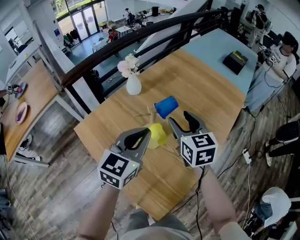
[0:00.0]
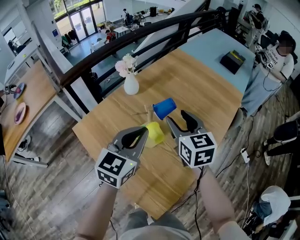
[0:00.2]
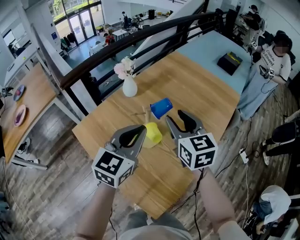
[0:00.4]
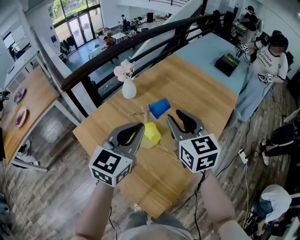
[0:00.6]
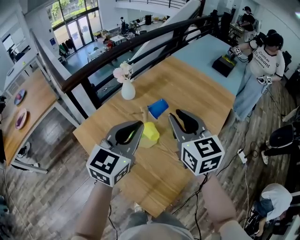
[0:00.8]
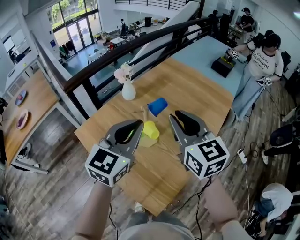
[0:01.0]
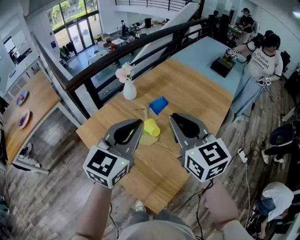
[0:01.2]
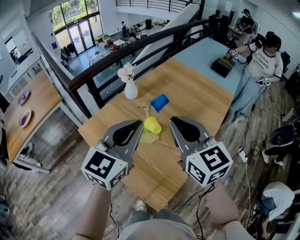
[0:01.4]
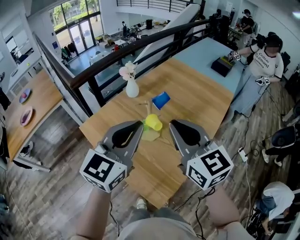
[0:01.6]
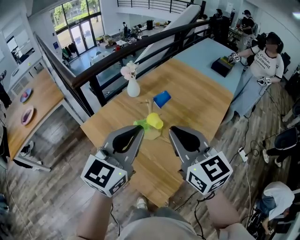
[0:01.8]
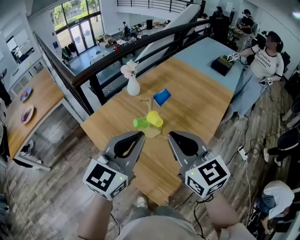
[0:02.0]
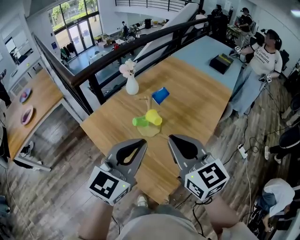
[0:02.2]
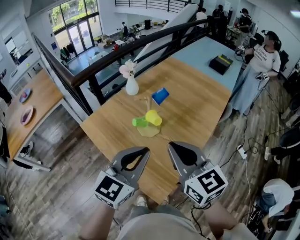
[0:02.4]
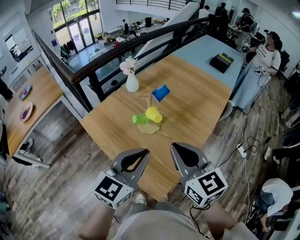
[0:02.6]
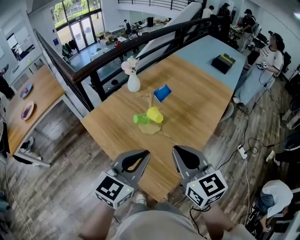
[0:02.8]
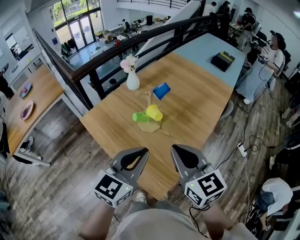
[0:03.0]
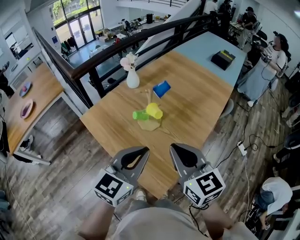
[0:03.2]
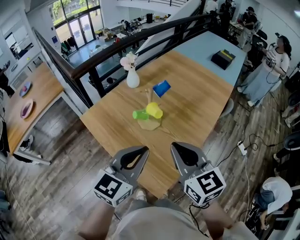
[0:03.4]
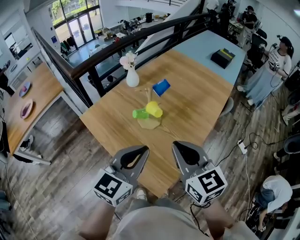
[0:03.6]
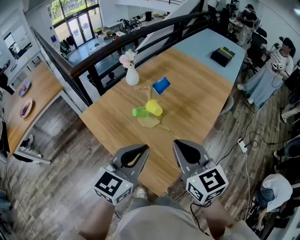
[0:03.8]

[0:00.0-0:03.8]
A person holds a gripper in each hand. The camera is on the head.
0.0 to 1.2 s: The two grippers go approximately 15 cm upward and backward. The right gripper closes.
1.2 to 2.6 s: Both grippers move backward, roughly 15 cm.
2.6 to 3.8 s: The grippers stay close to where they were, moving slightly.

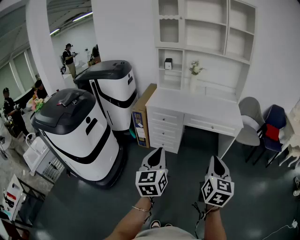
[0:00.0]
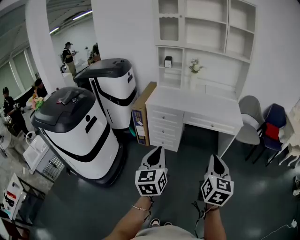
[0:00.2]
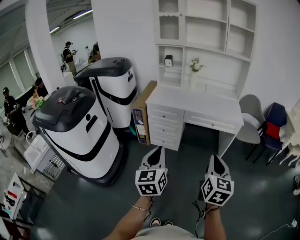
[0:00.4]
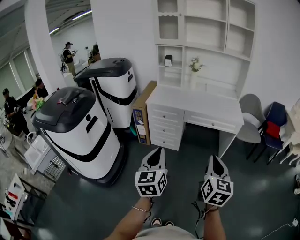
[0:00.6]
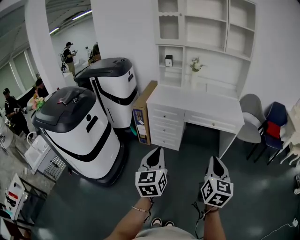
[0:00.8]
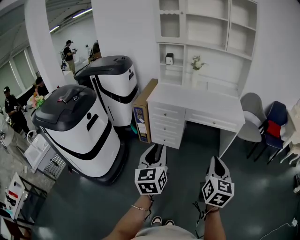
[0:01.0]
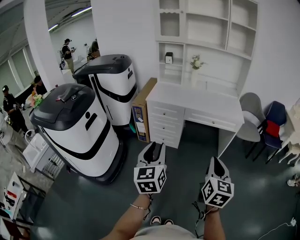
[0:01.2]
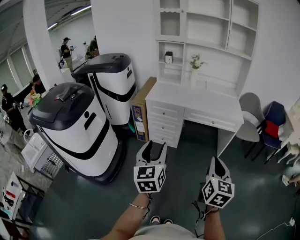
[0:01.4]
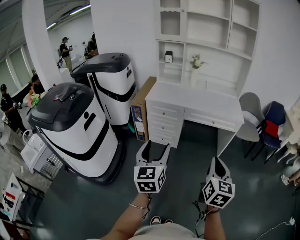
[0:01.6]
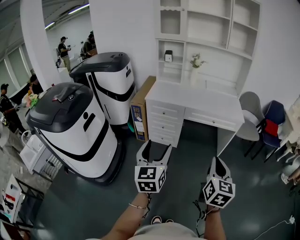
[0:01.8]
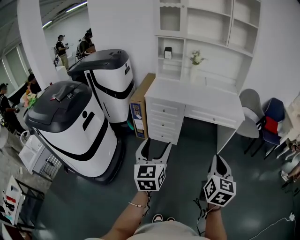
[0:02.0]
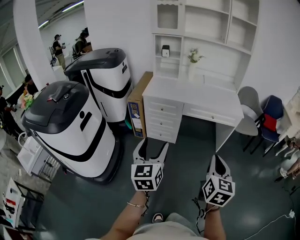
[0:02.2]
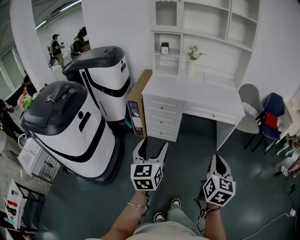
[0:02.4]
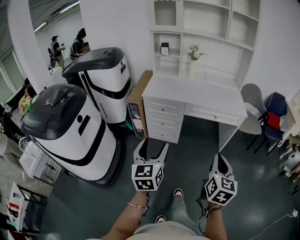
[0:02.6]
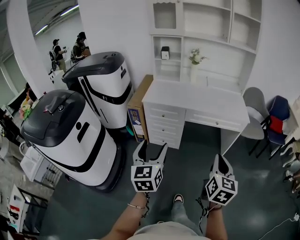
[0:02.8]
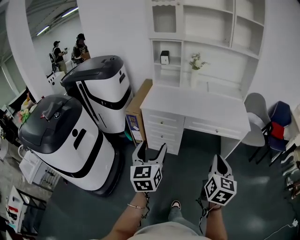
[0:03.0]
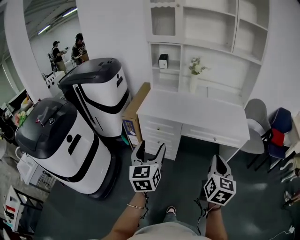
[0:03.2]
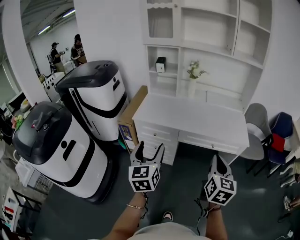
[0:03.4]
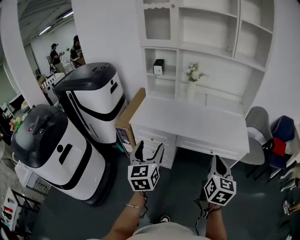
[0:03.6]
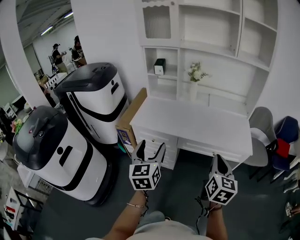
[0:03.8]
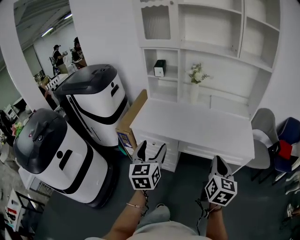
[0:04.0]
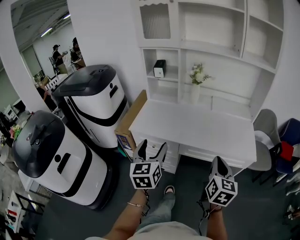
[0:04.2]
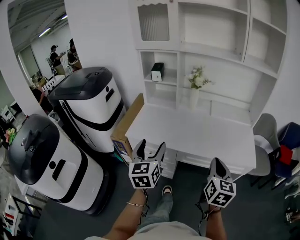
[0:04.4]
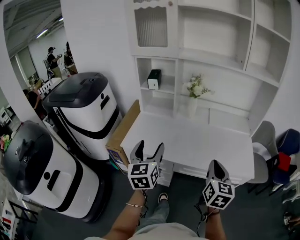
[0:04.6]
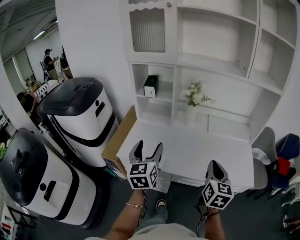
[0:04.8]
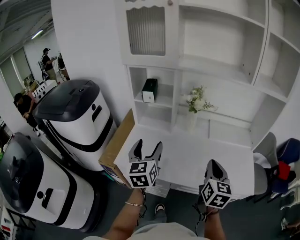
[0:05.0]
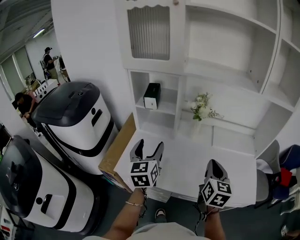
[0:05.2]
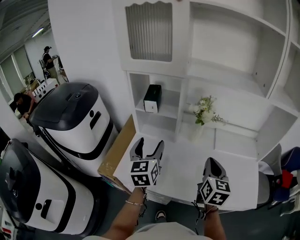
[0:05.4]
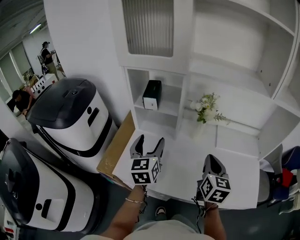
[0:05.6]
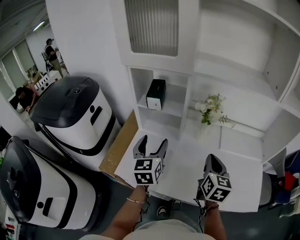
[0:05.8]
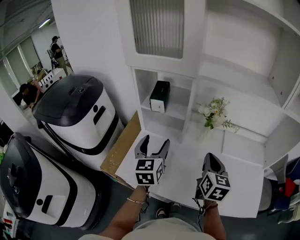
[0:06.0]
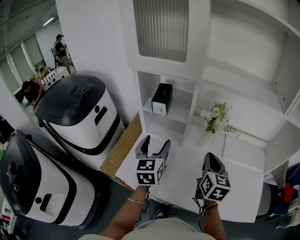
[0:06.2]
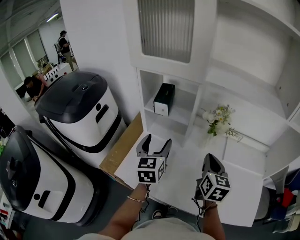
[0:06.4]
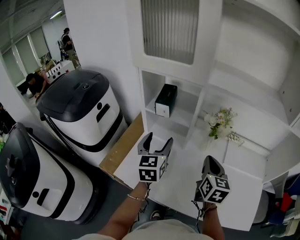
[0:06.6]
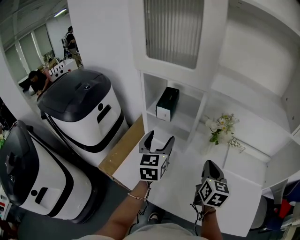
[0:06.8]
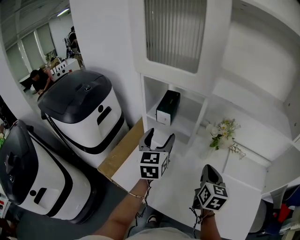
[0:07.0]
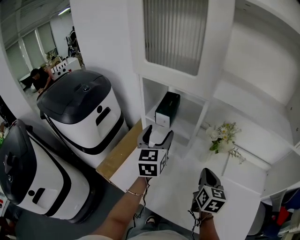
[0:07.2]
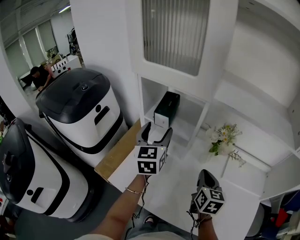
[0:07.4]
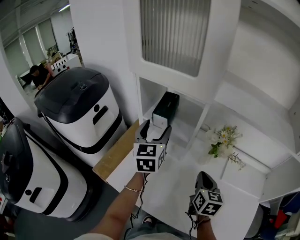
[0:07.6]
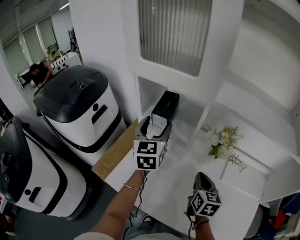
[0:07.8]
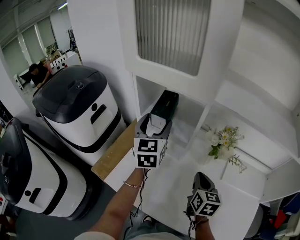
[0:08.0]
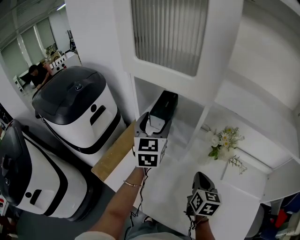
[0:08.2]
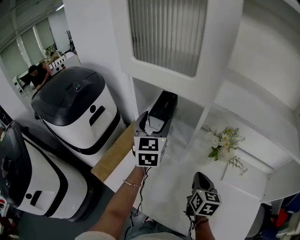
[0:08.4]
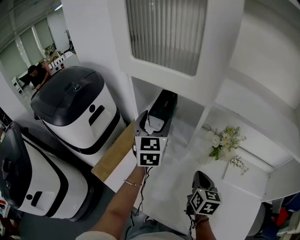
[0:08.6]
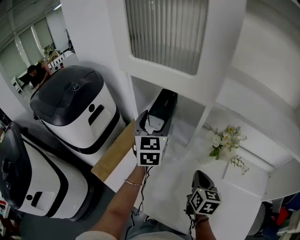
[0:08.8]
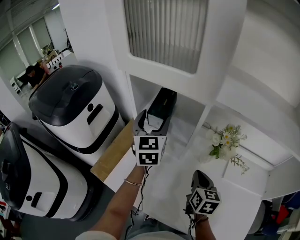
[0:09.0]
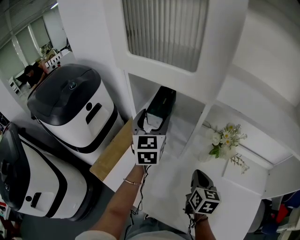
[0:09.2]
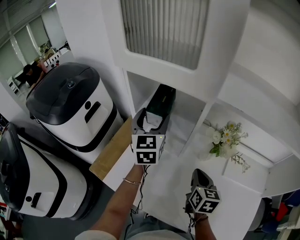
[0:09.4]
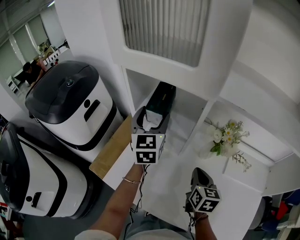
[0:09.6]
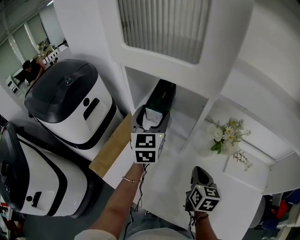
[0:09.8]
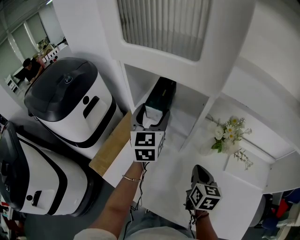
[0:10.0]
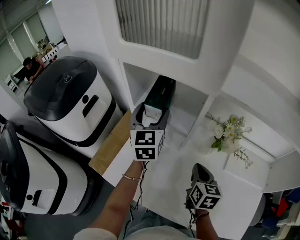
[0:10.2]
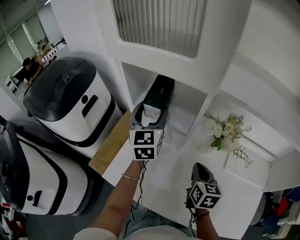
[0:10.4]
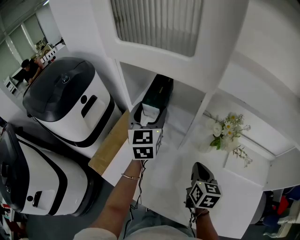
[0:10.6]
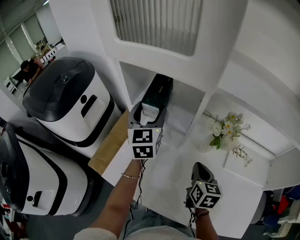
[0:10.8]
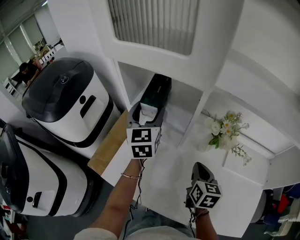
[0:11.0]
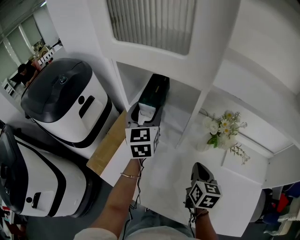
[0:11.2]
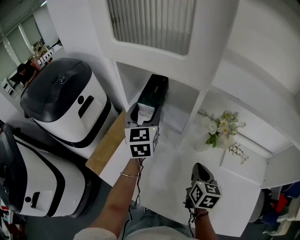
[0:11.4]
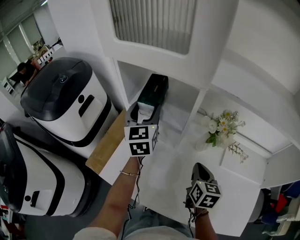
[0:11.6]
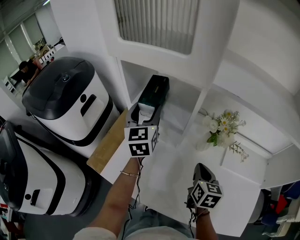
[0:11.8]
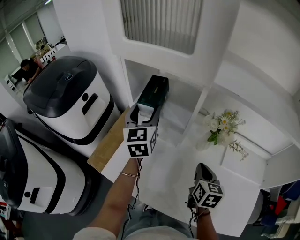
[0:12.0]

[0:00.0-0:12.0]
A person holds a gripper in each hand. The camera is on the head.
0.0 to 1.6 s: The left gripper opens.
1.6 to 3.0 s: Both grippers move forward, about 15 cm.
3.0 to 4.4 s: Both grippers travel together forward, some 30 cm.
4.4 to 6.0 s: The two grippers go about 35 cm forward.
6.0 to 7.6 s: The right gripper heads forward and downward, covering some 10 cm, while the left gripper is displaced forward by about 15 cm.
7.6 to 9.0 s: The left gripper travels forward by about 5 cm.
9.0 to 12.0 s: The grippers make only small movements.

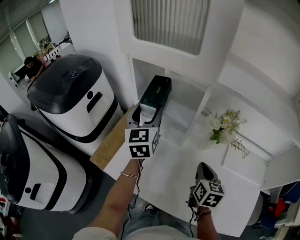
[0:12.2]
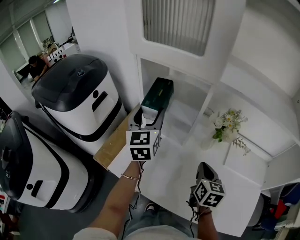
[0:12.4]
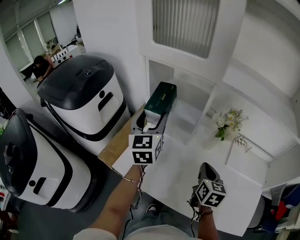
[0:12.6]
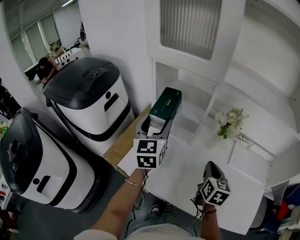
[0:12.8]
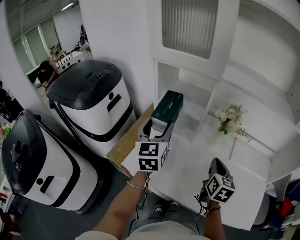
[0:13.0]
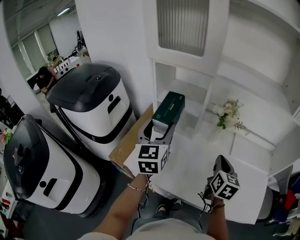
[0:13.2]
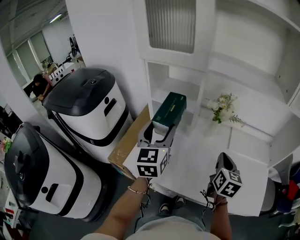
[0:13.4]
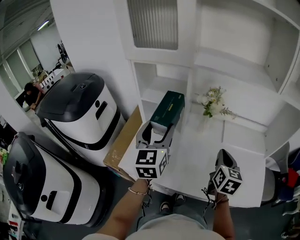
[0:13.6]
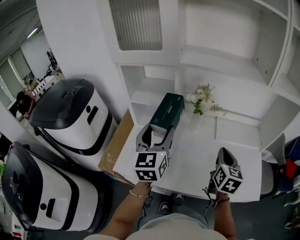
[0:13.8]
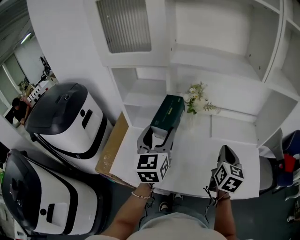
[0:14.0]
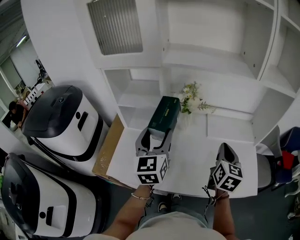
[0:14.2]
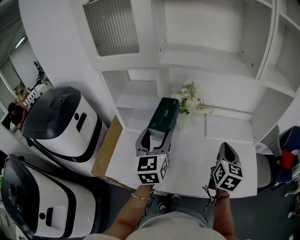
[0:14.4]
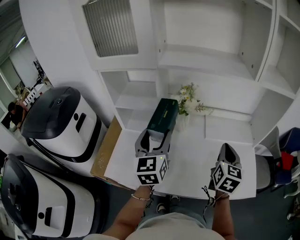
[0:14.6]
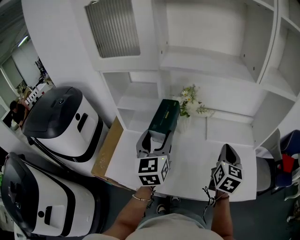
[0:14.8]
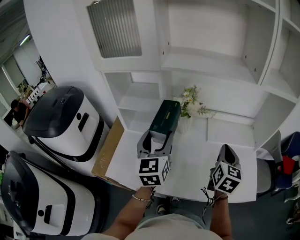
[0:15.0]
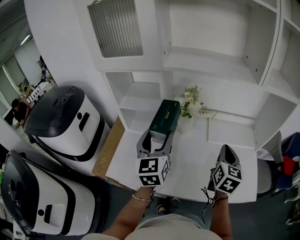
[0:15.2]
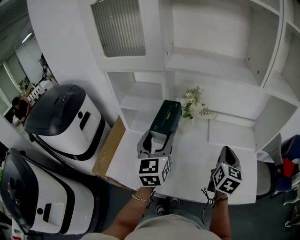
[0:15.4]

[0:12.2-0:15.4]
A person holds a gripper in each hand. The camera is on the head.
12.2 to 13.8 s: The right gripper travels backward, to the right and upward by some 20 cm, and changes its angle by approximately 20 degrees; the left gripper is displaced backward and to the right by about 20 cm.
13.8 to 15.4 s: The right gripper moves to the right, roughly 5 cm. Meanwhile the left gripper shifts by roughly 5 cm.

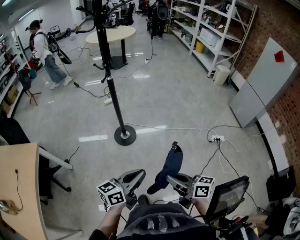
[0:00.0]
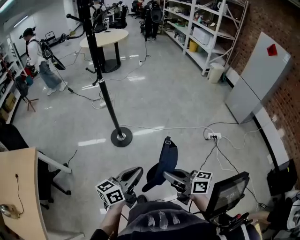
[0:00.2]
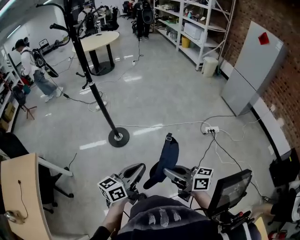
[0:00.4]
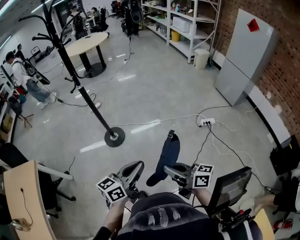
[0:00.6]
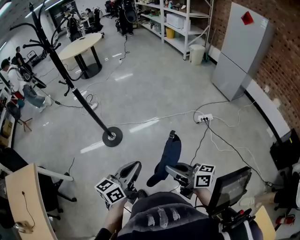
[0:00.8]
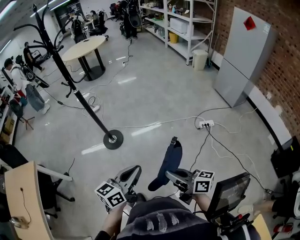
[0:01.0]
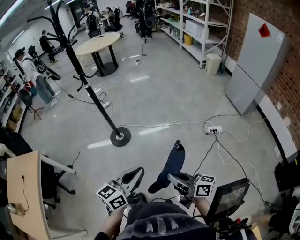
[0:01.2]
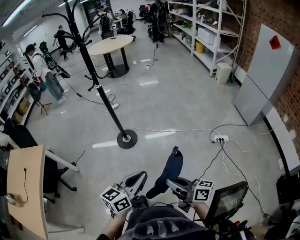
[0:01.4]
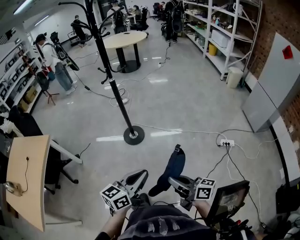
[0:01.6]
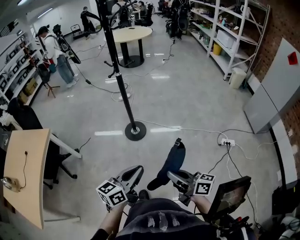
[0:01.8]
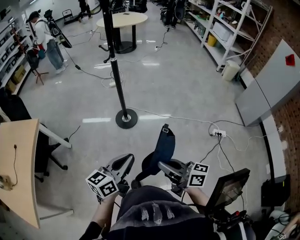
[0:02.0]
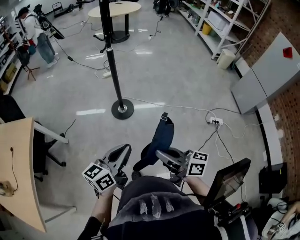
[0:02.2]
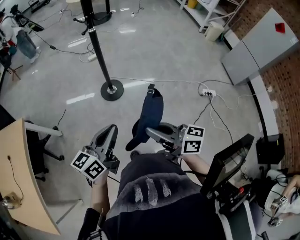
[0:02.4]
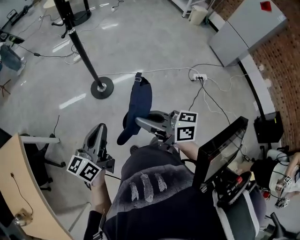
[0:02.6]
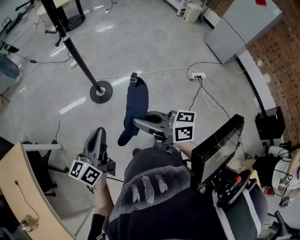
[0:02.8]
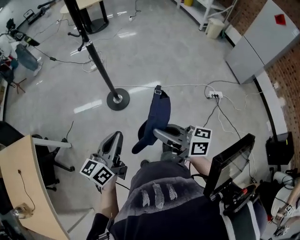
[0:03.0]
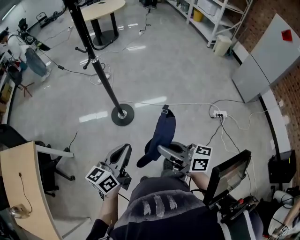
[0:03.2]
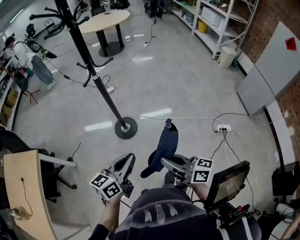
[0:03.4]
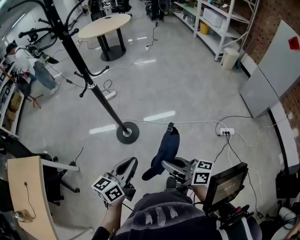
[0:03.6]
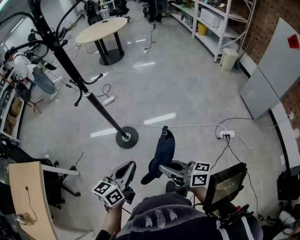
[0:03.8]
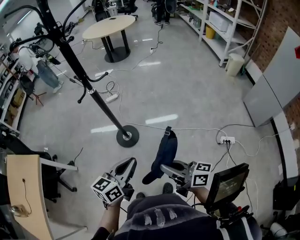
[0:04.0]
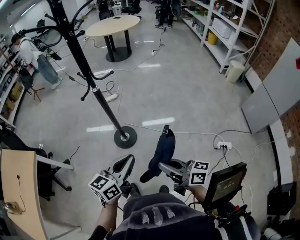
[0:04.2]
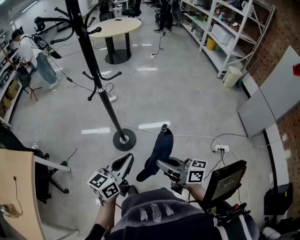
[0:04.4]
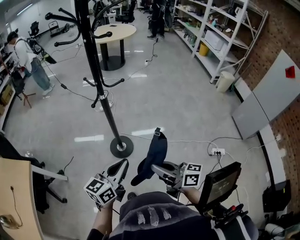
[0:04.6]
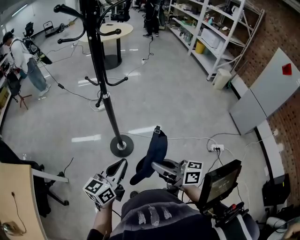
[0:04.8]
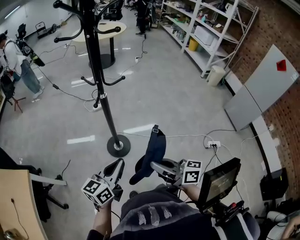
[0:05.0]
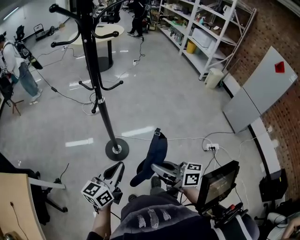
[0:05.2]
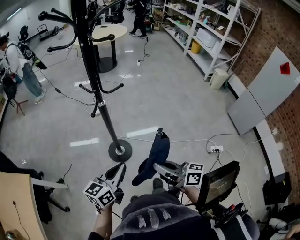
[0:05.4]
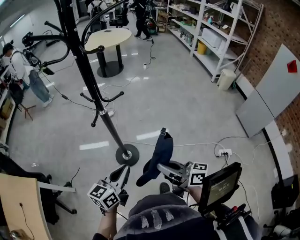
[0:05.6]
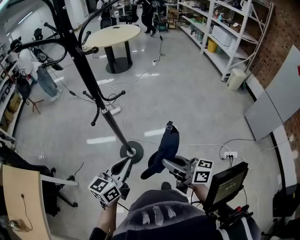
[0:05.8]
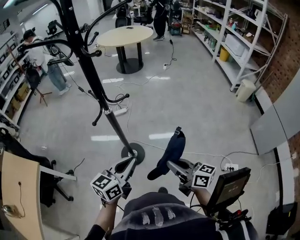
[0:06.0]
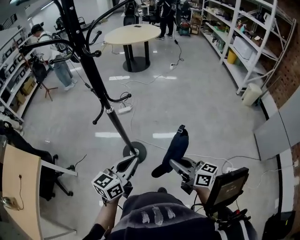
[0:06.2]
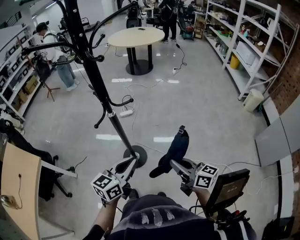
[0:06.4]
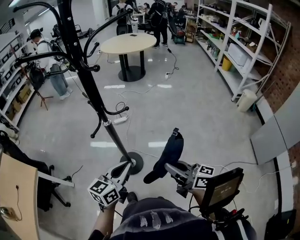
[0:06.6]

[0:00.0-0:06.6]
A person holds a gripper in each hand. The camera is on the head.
0.0 to 1.6 s: Both grippers travel together to the right and backward, approximately 15 cm.
1.6 to 3.2 s: Both grippers travel together forward and to the left, about 20 cm.
3.2 to 5.0 s: The grippers both shift forward by roughly 15 cm. The right gripper goes to the right and returns, roughly 10 cm each way. The left gripper moves some 15 cm to the right and comes back.
5.0 to 6.6 s: The left gripper moves forward and to the right, about 15 cm. Meanwhile the right gripper moves to the right and forward, approximately 20 cm.
